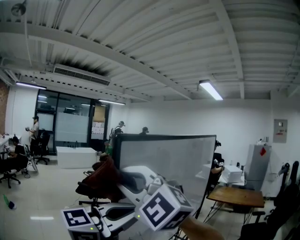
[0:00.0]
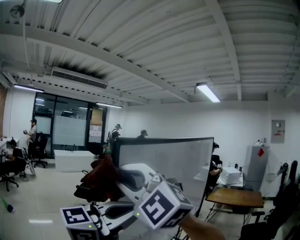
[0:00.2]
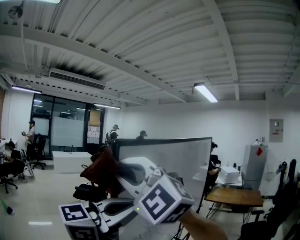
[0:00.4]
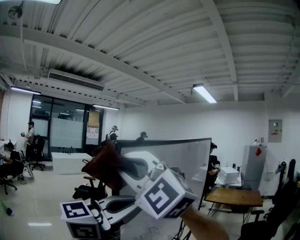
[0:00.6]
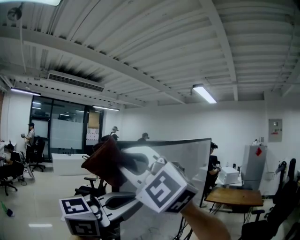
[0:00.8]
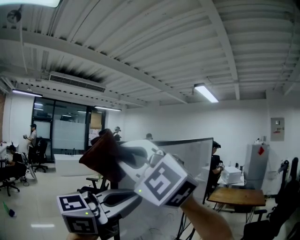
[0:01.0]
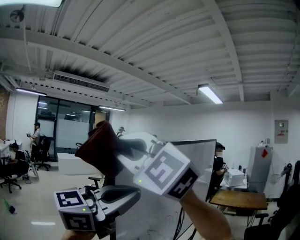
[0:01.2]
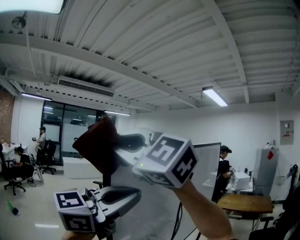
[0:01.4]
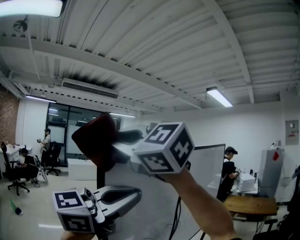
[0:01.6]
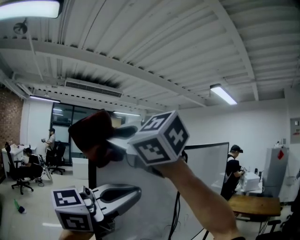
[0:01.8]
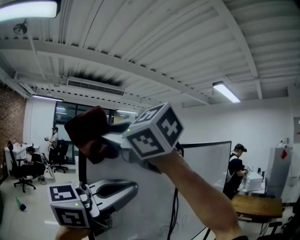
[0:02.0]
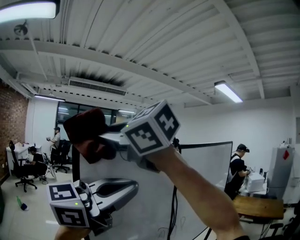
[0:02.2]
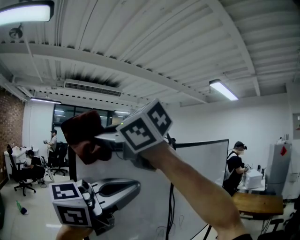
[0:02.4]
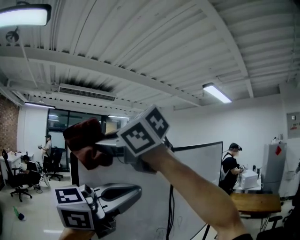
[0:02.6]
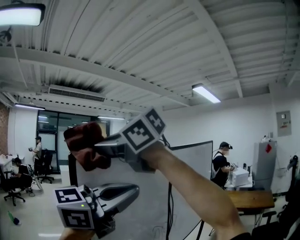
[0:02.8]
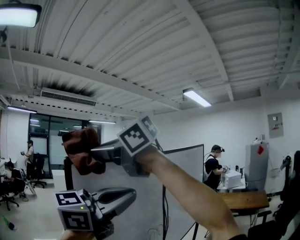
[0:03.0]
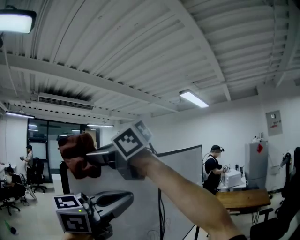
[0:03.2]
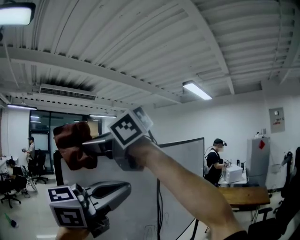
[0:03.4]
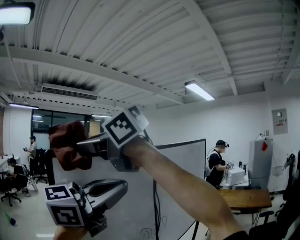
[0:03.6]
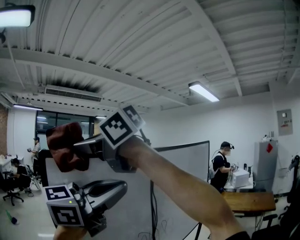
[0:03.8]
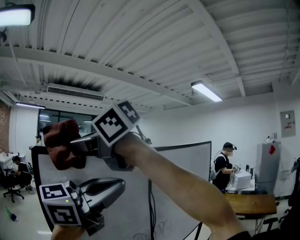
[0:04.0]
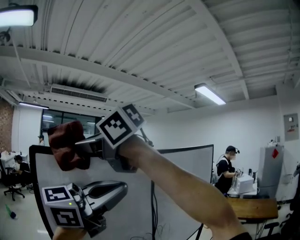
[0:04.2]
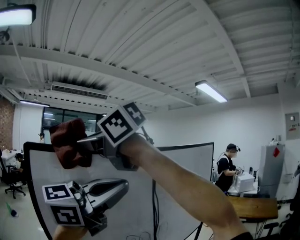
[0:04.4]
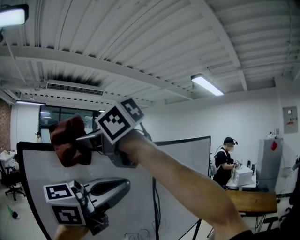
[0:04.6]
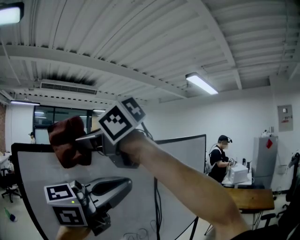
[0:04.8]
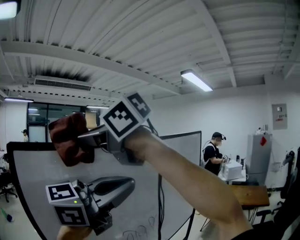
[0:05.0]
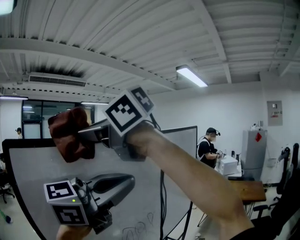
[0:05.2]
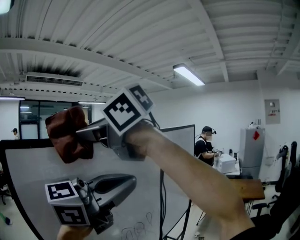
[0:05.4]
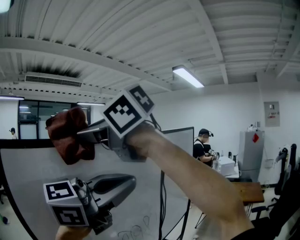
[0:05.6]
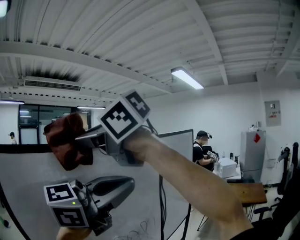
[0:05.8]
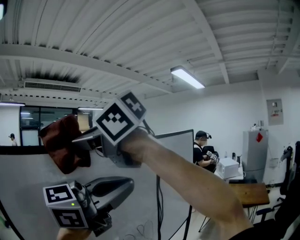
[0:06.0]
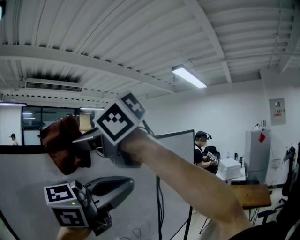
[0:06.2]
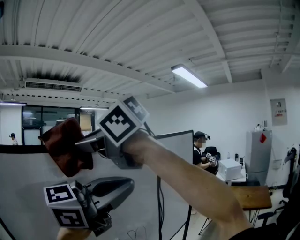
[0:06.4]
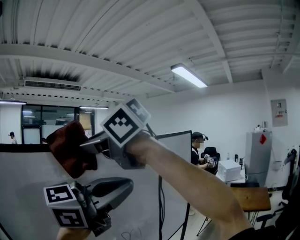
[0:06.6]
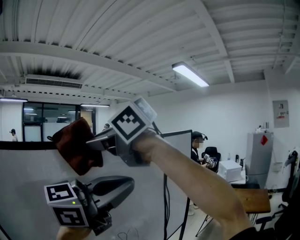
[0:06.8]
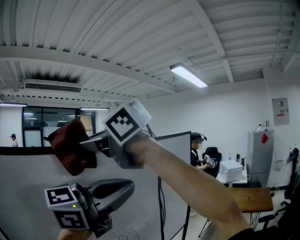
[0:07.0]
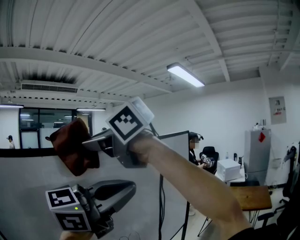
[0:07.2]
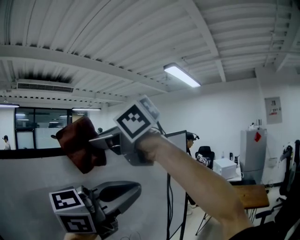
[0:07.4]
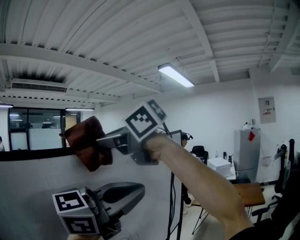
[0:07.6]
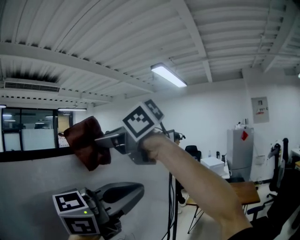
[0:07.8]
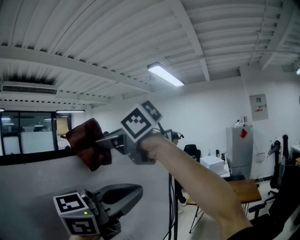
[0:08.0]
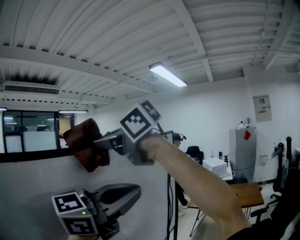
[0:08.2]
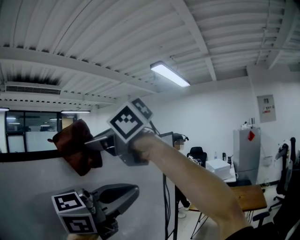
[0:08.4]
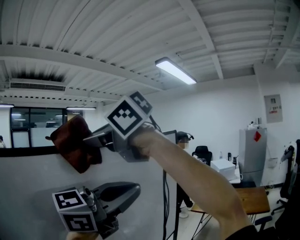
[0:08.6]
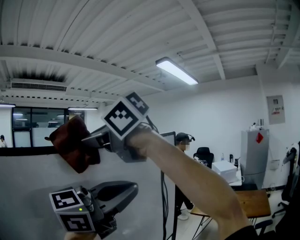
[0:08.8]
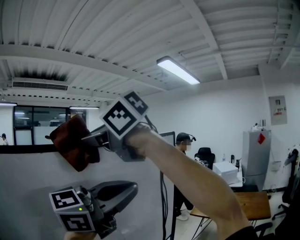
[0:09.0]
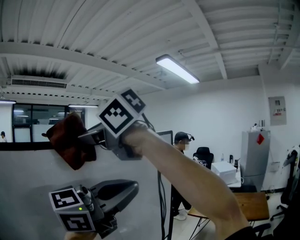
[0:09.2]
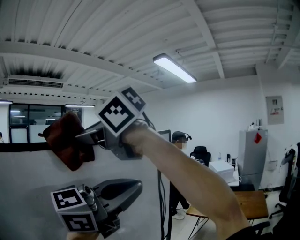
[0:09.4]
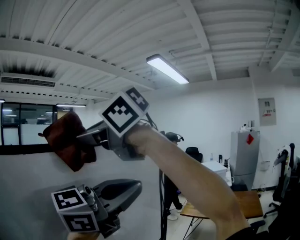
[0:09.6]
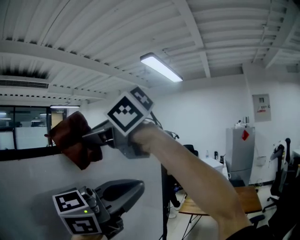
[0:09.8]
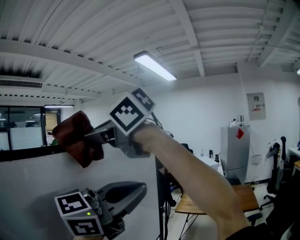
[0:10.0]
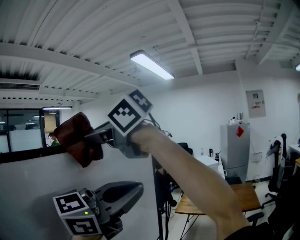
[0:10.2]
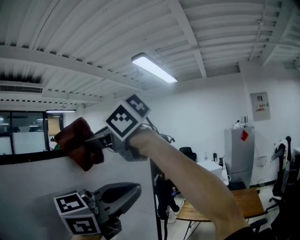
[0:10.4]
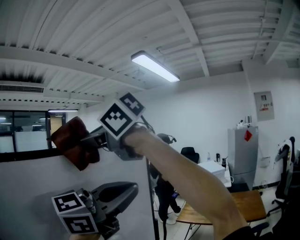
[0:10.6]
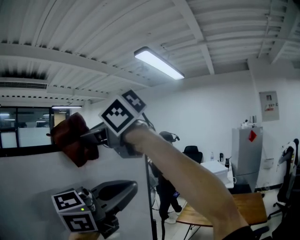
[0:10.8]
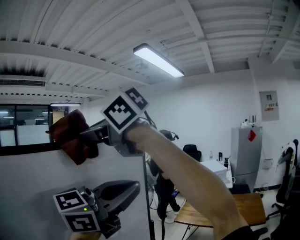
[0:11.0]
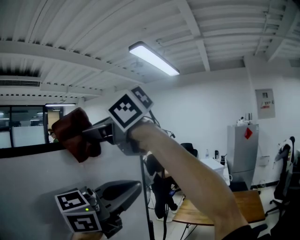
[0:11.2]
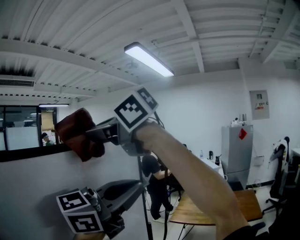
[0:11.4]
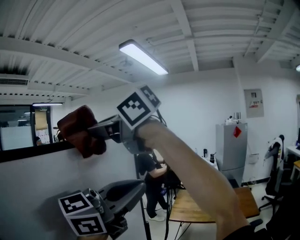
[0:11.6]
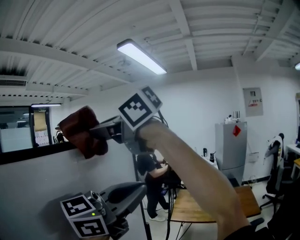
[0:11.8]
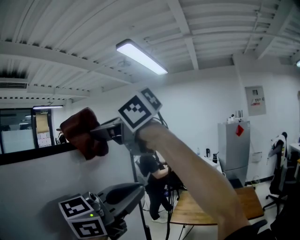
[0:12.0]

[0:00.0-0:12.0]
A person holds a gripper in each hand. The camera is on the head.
0:00.0 to 0:01.6: The right gripper shifts some 15 cm upward, and turns by roughly 20 degrees, while the left gripper is displaced upward by approximately 10 cm.
0:01.6 to 0:03.0: The right gripper ends up roughly 5 cm from where it was, and turns by roughly 30 degrees, while the left gripper ends up some 10 cm from where it was.
0:03.0 to 0:04.4: The left gripper shifts by roughly 15 cm. Meanwhile the right gripper moves approximately 10 cm.
0:04.4 to 0:06.0: The left gripper ends up about 10 cm from where it was, while the right gripper ends up approximately 15 cm from where it was.
0:06.0 to 0:07.6: The right gripper shifts by about 20 cm. Meanwhile the left gripper ends up about 10 cm from where it was.
0:07.6 to 0:09.0: The right gripper ends up about 15 cm from where it was. Meanwhile the left gripper moves some 20 cm.
0:09.0 to 0:10.4: The right gripper moves approximately 20 cm. The left gripper moves some 15 cm.
0:10.4 to 0:12.0: The right gripper changes place by about 20 cm, while the left gripper shifts by approximately 15 cm.

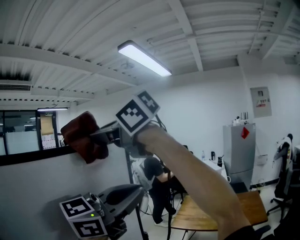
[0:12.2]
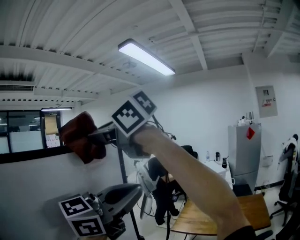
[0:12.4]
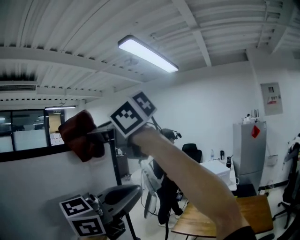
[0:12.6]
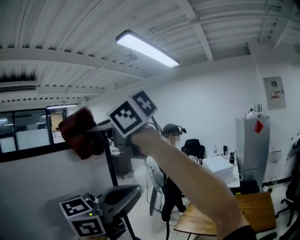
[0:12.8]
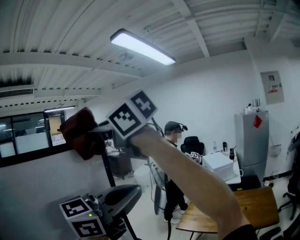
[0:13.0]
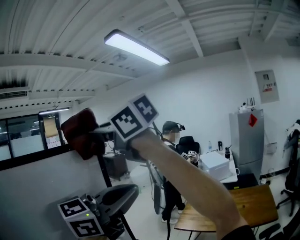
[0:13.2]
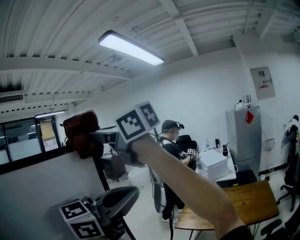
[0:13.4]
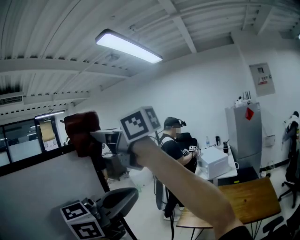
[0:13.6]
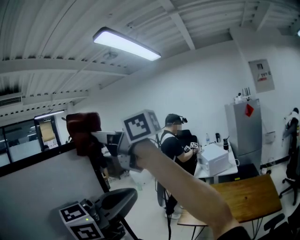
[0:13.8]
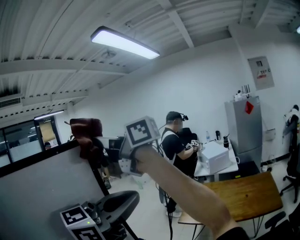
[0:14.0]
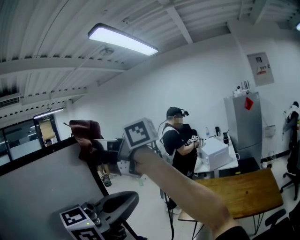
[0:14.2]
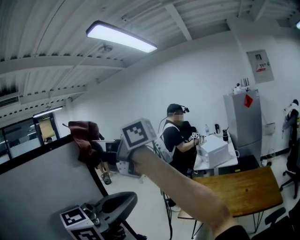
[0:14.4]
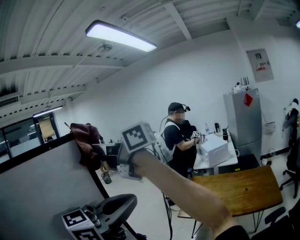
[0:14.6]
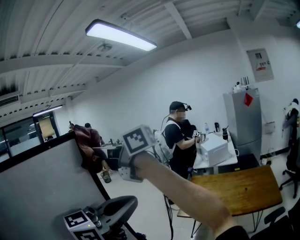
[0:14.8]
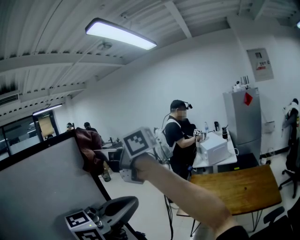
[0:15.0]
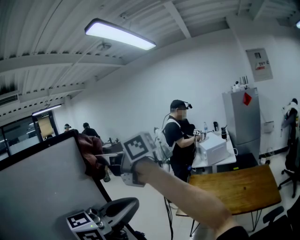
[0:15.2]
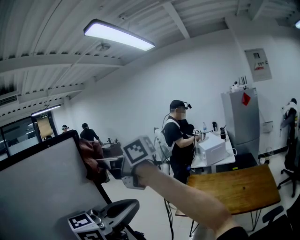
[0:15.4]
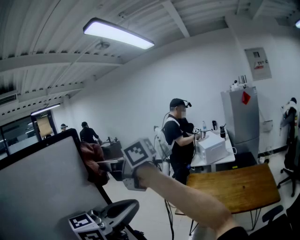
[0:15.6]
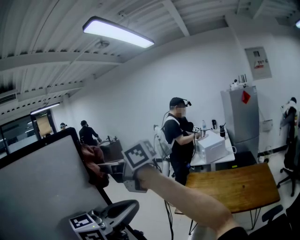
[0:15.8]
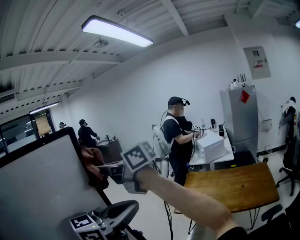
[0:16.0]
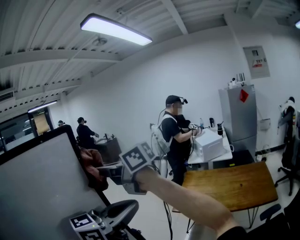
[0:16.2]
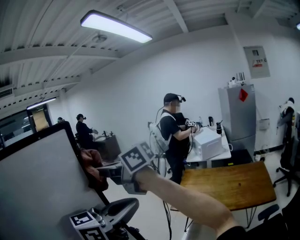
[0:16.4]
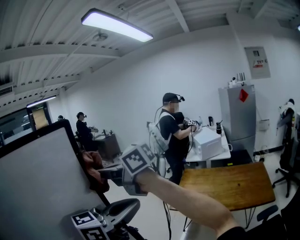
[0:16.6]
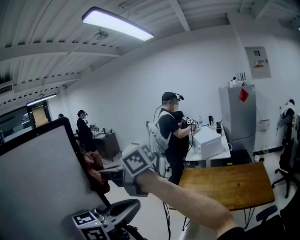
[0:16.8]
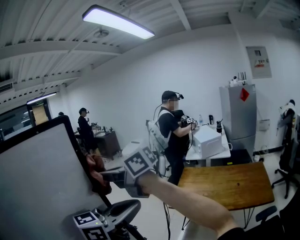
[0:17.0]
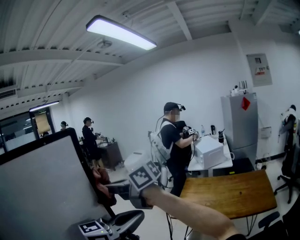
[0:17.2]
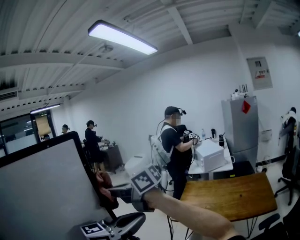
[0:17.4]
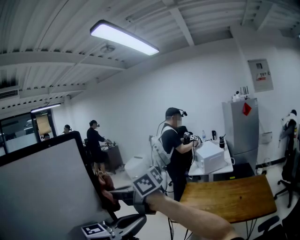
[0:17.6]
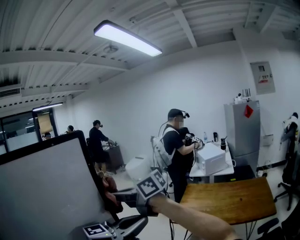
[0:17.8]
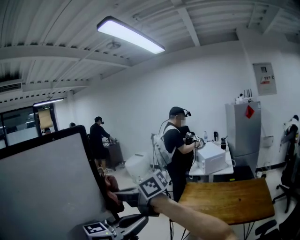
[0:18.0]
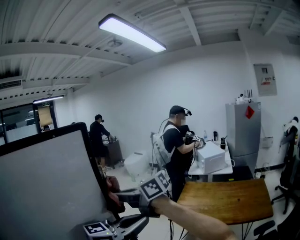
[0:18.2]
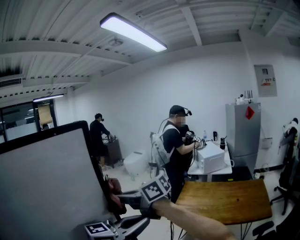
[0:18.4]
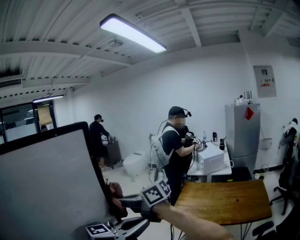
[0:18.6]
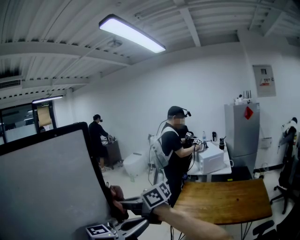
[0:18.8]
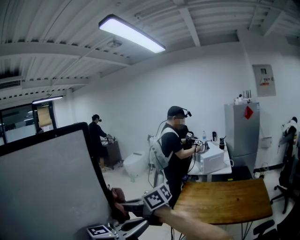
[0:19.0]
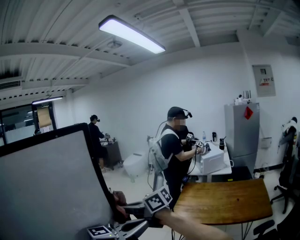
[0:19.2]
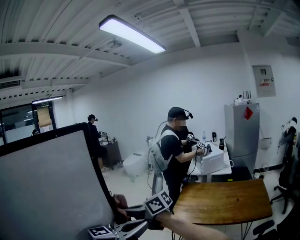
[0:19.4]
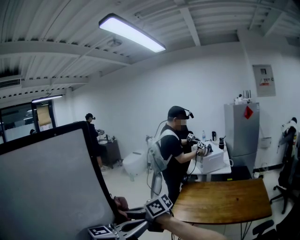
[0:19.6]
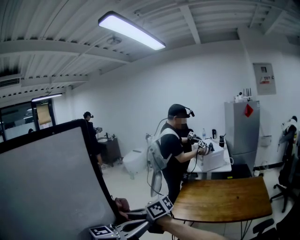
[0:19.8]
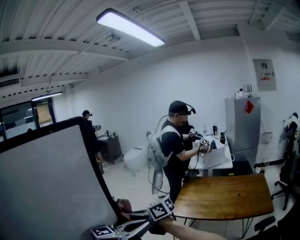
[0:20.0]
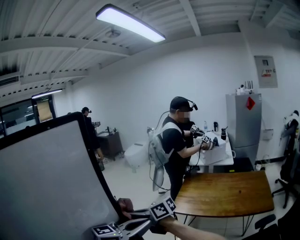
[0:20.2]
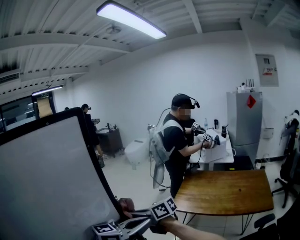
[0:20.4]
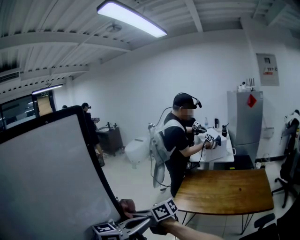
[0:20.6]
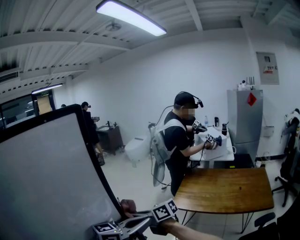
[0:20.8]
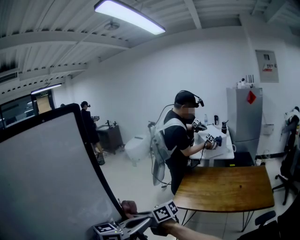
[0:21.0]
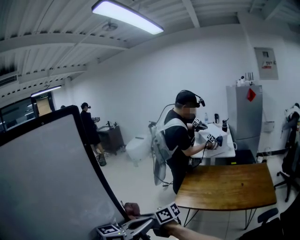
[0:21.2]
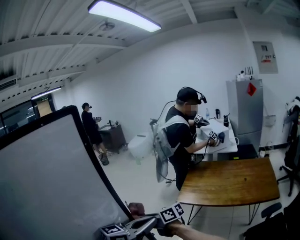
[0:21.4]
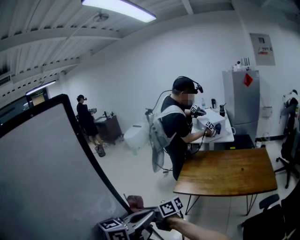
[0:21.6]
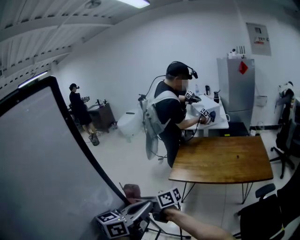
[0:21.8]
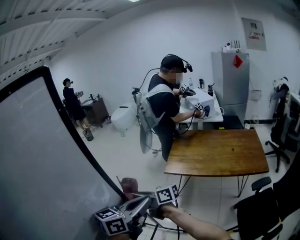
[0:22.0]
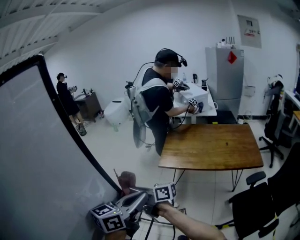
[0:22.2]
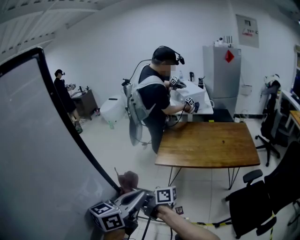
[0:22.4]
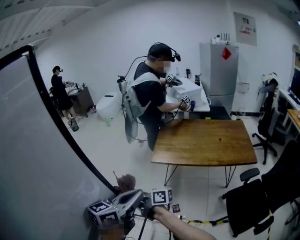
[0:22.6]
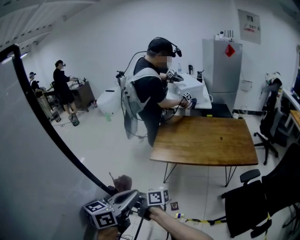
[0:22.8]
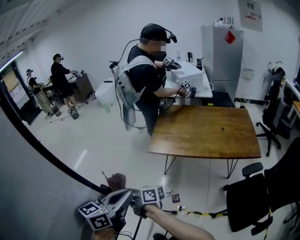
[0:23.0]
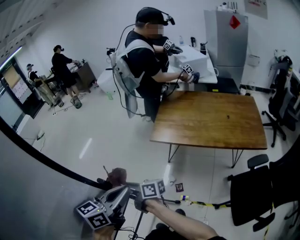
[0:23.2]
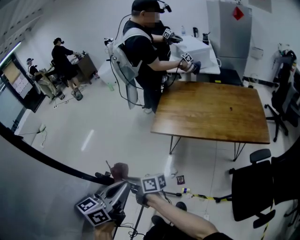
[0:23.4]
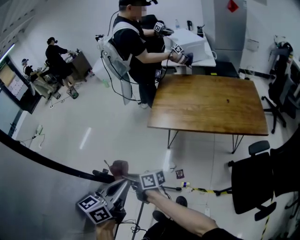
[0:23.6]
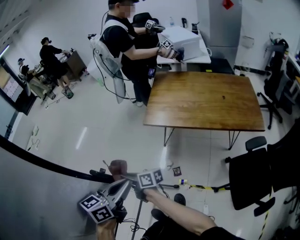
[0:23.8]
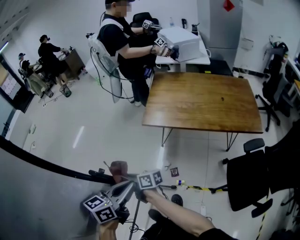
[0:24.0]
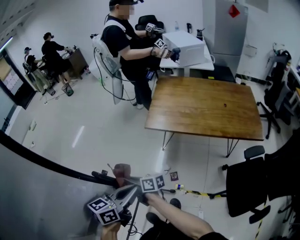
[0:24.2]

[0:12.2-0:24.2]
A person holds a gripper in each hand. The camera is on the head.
0:12.2 to 0:13.8: The right gripper changes place by about 20 cm, and turns by about 30 degrees; the left gripper moves some 15 cm.
0:13.8 to 0:15.2: The right gripper shifts roughly 10 cm downward, while the left gripper shifts roughly 5 cm downward.
0:15.2 to 0:16.6: The left gripper heads downward, covering roughly 5 cm, while the right gripper shifts some 10 cm downward.
0:16.6 to 0:18.2: The right gripper heads downward, covering roughly 10 cm.
0:18.2 to 0:19.8: The left gripper heads downward, covering some 5 cm. The right gripper goes about 15 cm downward.
0:19.8 to 0:21.2: The left gripper shifts some 5 cm downward. The right gripper heads downward, covering approximately 10 cm.
0:21.2 to 0:22.6: Both grippers travel together downward, approximately 5 cm. The right gripper turns by about 30 degrees.
0:22.6 to 0:24.2: Both grippers travel together downward, about 15 cm.
